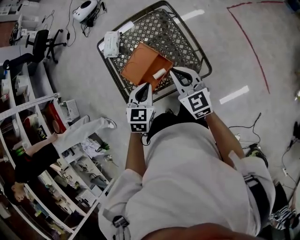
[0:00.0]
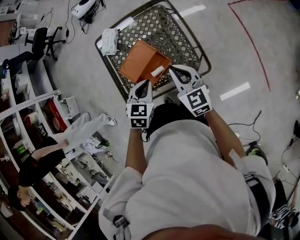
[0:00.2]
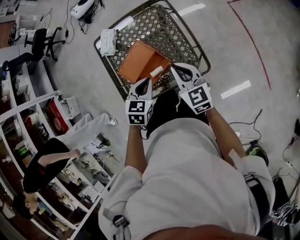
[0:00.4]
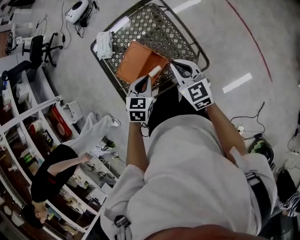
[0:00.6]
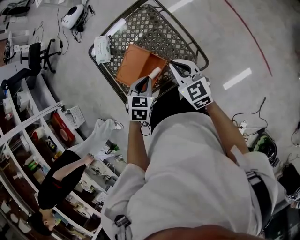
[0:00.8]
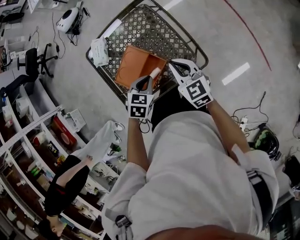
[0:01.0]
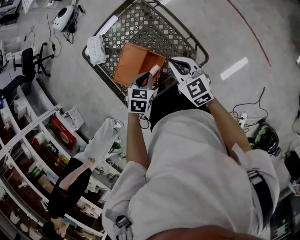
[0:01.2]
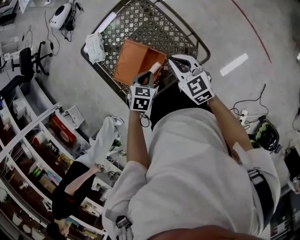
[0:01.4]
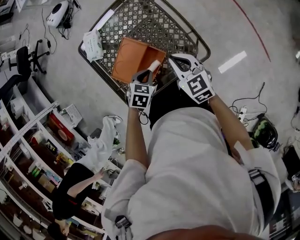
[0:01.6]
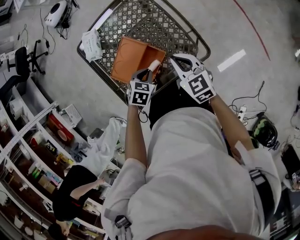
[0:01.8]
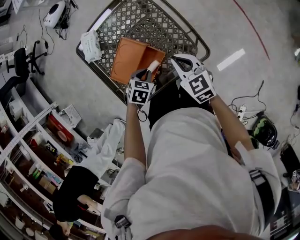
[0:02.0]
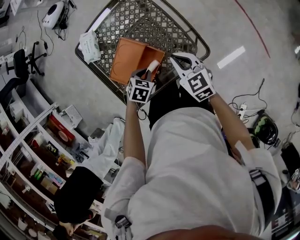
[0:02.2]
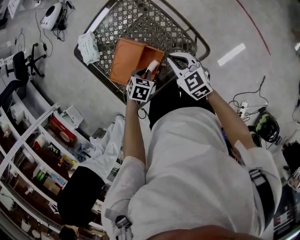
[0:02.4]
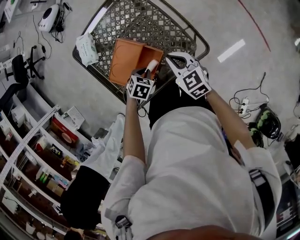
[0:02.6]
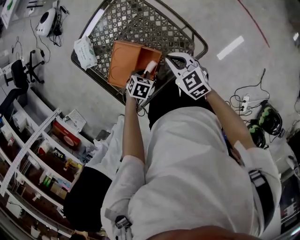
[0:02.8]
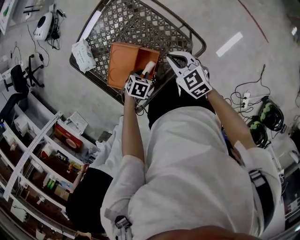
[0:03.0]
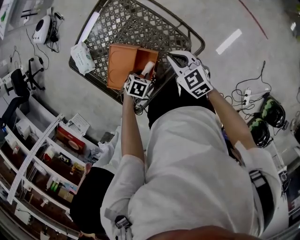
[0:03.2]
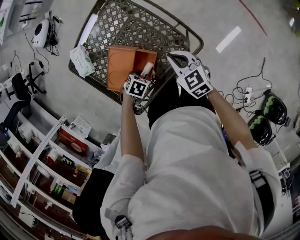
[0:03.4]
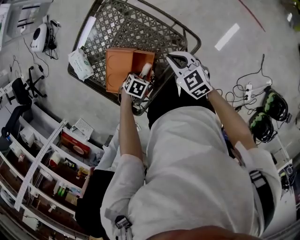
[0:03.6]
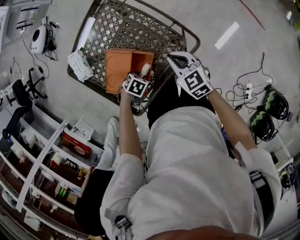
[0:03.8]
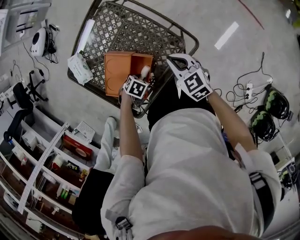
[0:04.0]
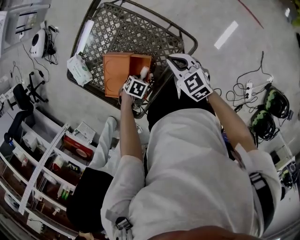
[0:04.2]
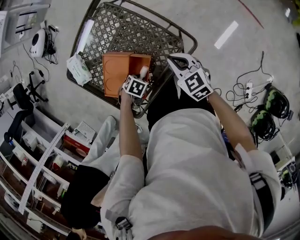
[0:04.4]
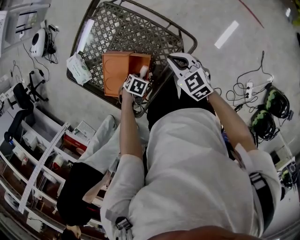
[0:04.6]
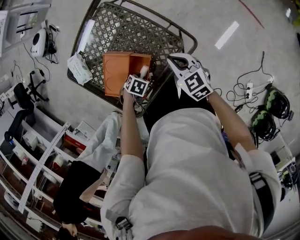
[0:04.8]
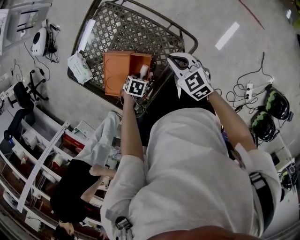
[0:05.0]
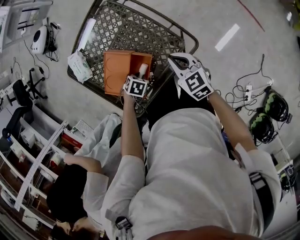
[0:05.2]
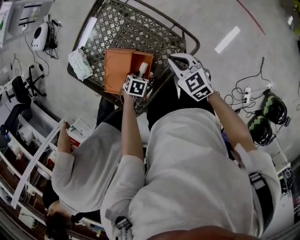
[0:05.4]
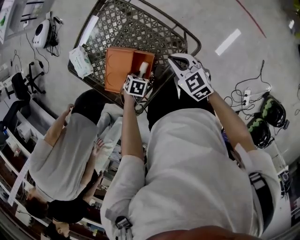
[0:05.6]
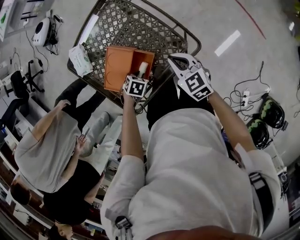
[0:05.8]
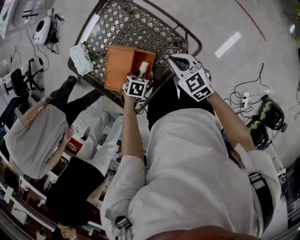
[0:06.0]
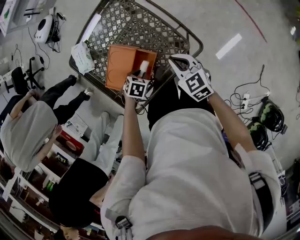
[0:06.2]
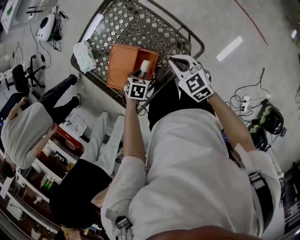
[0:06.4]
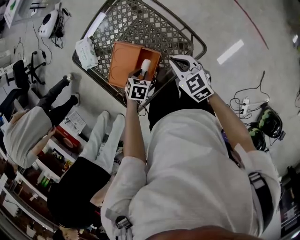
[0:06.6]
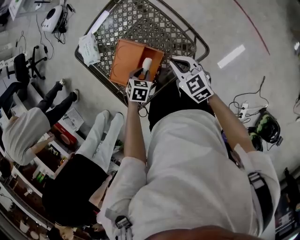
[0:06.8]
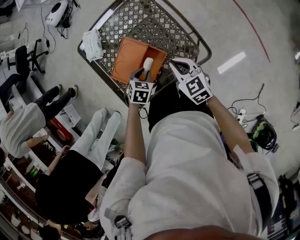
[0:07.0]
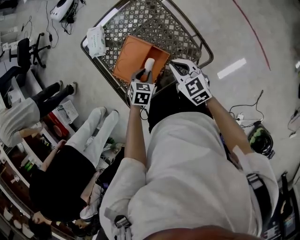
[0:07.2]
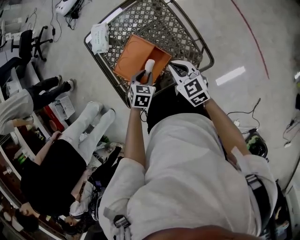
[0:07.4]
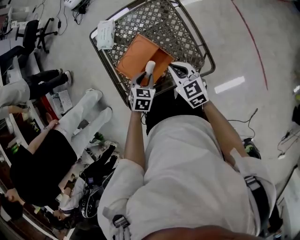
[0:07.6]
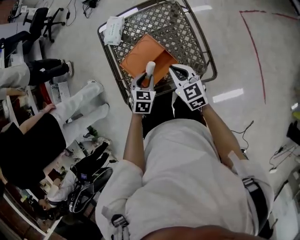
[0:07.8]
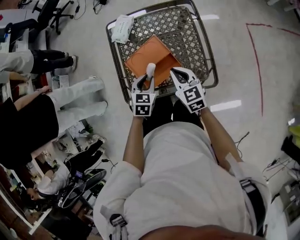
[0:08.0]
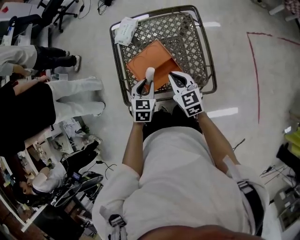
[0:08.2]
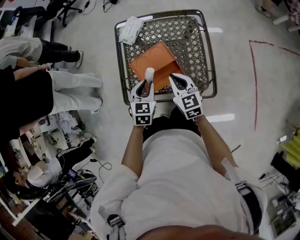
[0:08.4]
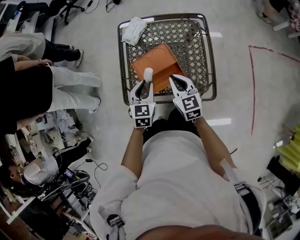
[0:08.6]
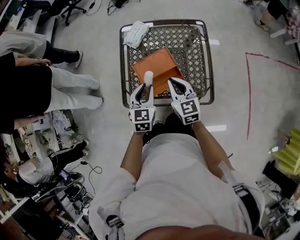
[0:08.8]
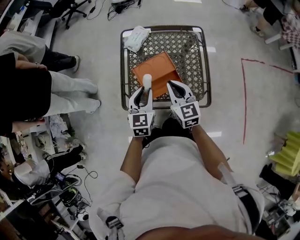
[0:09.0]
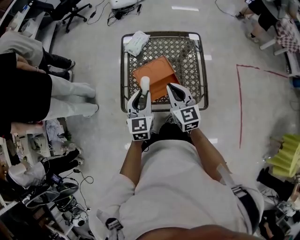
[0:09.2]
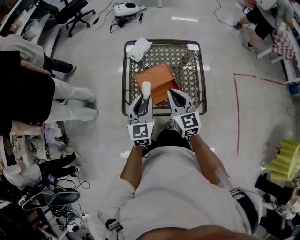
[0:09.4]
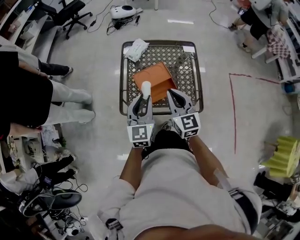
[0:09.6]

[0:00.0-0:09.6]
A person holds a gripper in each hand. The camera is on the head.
0.0 to 1.6 s: The right gripper shifts some 10 cm downward, while the left gripper moves downward, approximately 15 cm, and changes its angle by about 30 degrees.
1.6 to 3.2 s: The left gripper heads downward, covering about 10 cm, swivels approximately 30 degrees, and opens up. Meanwhile the right gripper moves downward, about 5 cm.
3.2 to 4.8 s: The grippers make only small movements.
4.8 to 6.4 s: The left gripper rotates some 20 degrees.
6.4 to 8.0 s: The right gripper changes place by approximately 10 cm, and turns by some 20 degrees. The left gripper is displaced upward by some 15 cm, and swivels roughly 50 degrees.
8.0 to 9.6 s: The left gripper shifts some 20 cm upward and backward, and tips its fingers upward by some 40 degrees, while the right gripper heads upward, to the left and backward, covering about 20 cm.

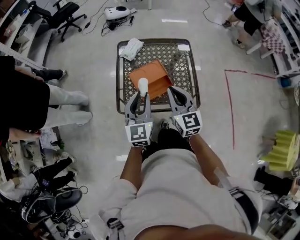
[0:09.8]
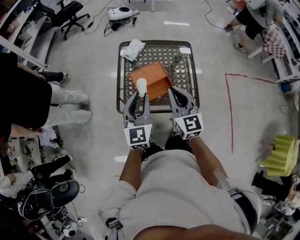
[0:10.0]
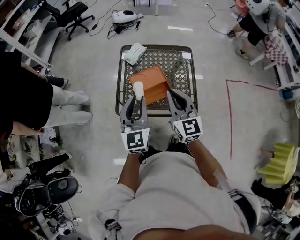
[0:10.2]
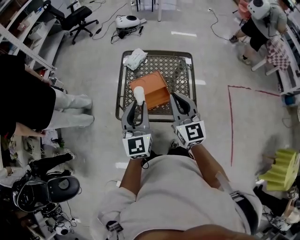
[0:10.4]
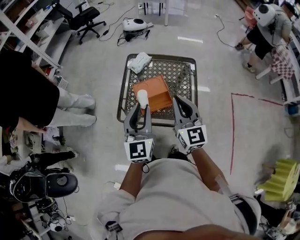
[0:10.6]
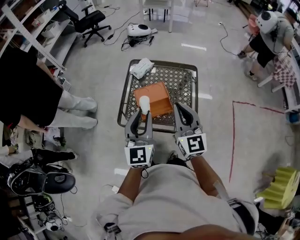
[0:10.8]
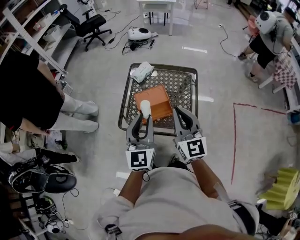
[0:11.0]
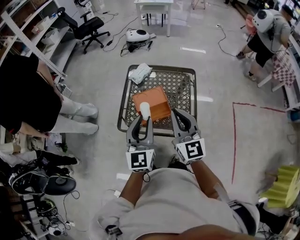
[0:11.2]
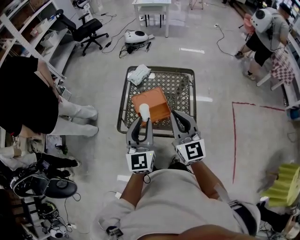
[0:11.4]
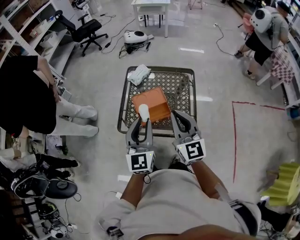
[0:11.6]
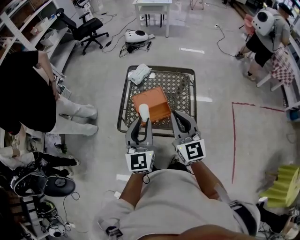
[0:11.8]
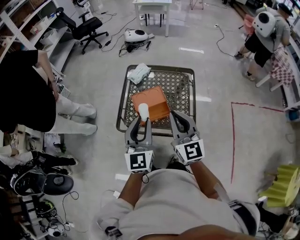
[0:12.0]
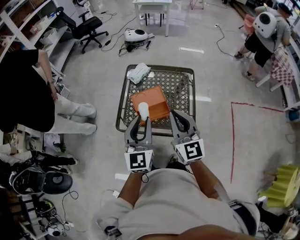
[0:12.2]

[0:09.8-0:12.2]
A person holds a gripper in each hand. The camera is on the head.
9.8 to 11.0 s: The two grippers go roughly 10 cm upward and to the right.
11.0 to 12.2 s: The grippers make only small movements.

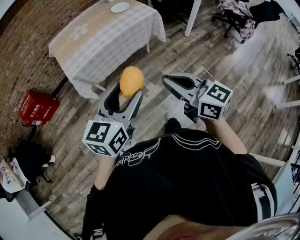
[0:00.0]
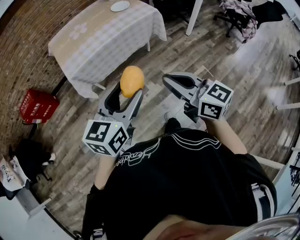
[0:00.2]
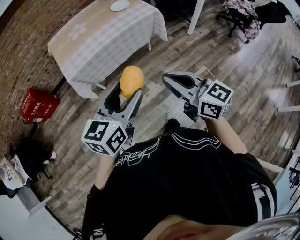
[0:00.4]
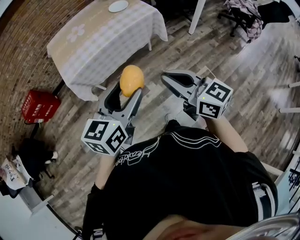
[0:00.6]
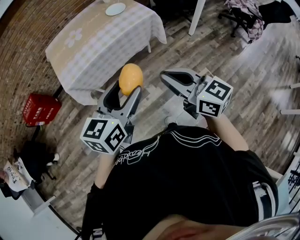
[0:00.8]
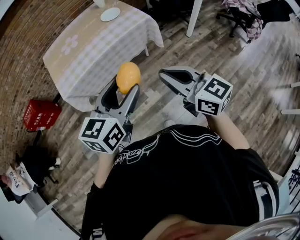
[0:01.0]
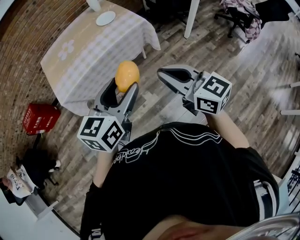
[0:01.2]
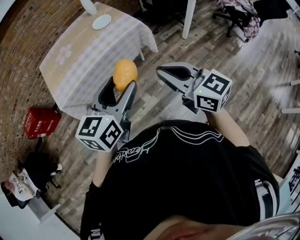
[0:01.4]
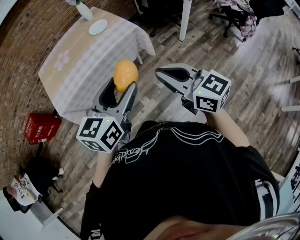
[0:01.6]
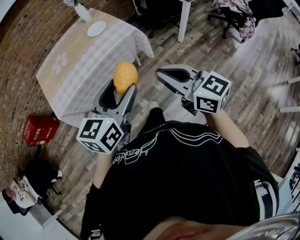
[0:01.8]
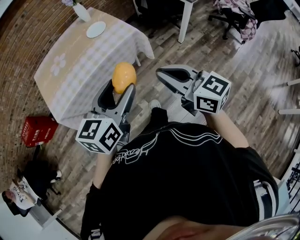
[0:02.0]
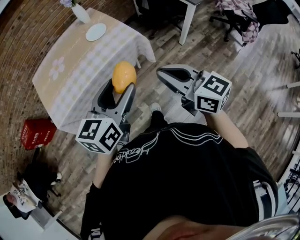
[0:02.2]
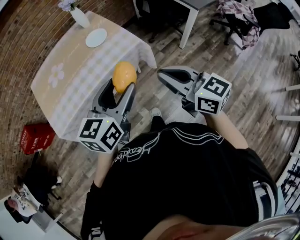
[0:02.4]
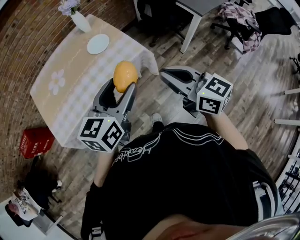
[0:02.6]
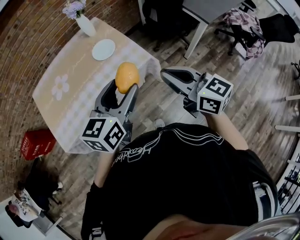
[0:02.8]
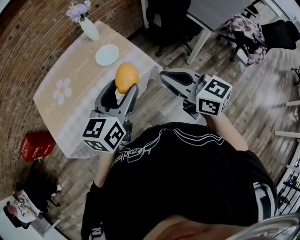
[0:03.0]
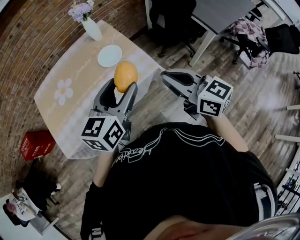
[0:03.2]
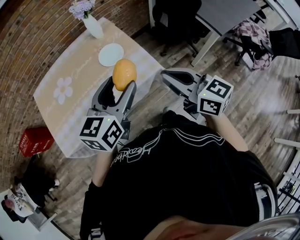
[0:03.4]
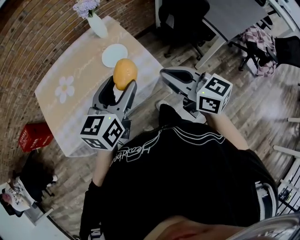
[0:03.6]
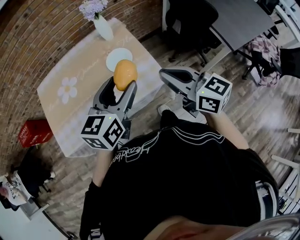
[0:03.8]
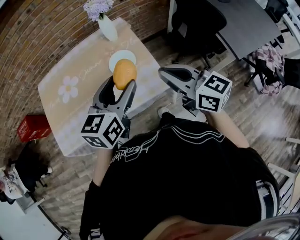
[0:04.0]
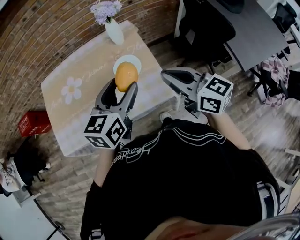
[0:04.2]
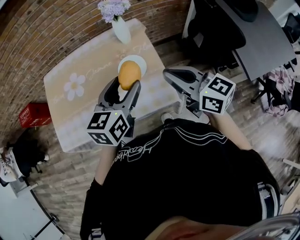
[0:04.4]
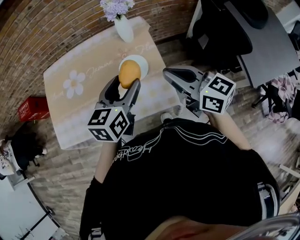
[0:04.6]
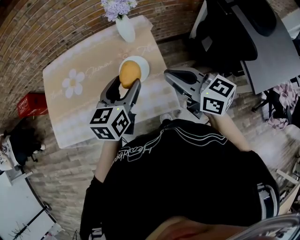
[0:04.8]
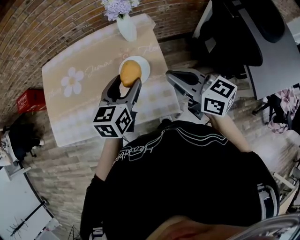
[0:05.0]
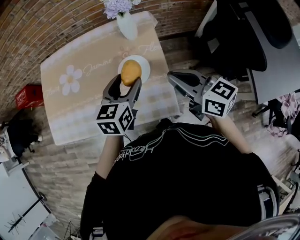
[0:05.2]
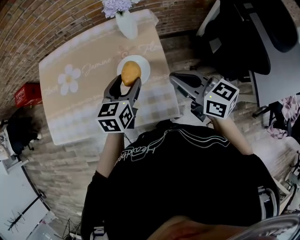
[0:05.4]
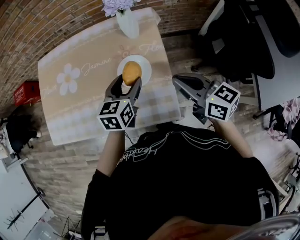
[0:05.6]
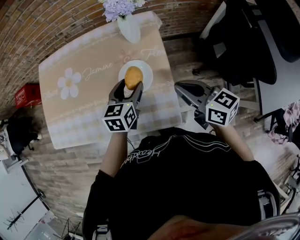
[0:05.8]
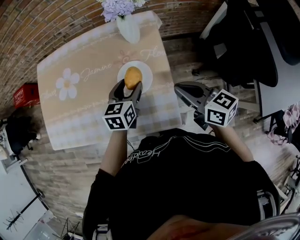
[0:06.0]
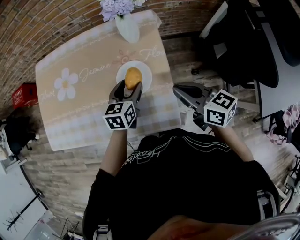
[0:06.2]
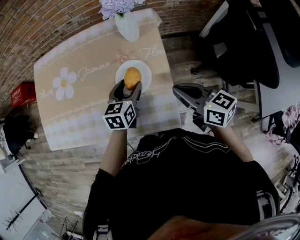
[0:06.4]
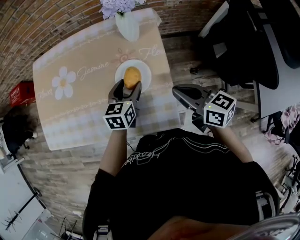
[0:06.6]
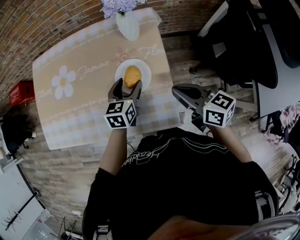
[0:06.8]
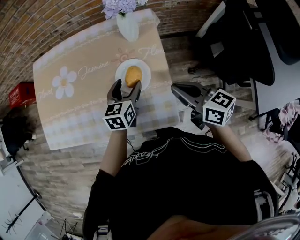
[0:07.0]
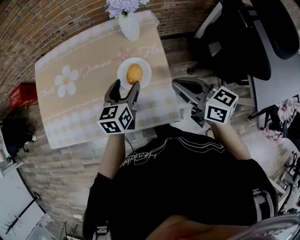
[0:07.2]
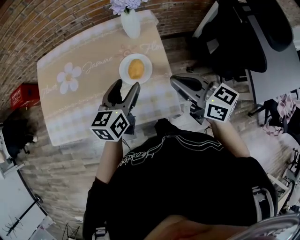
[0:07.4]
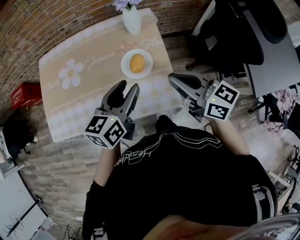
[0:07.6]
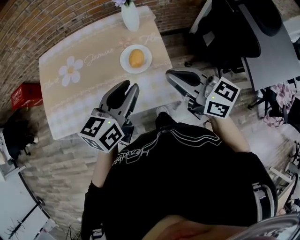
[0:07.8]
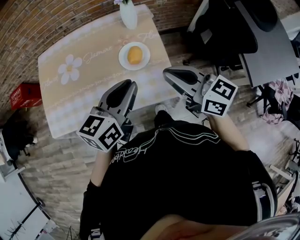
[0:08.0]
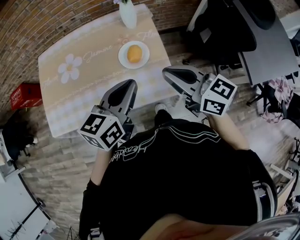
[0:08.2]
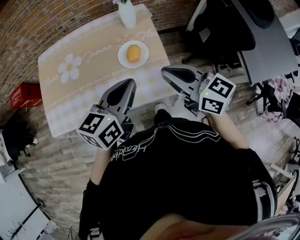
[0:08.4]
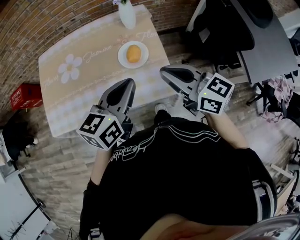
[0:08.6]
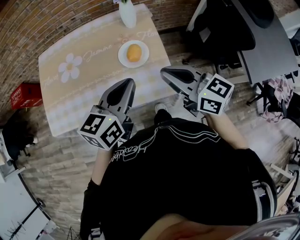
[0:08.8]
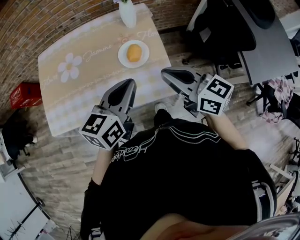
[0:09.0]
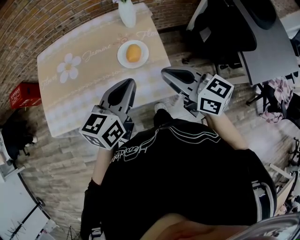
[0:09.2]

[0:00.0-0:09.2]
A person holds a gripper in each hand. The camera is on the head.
0.0 to 1.6 s: Both grippers travel together to the right and forward, roughly 25 cm.
1.6 to 3.0 s: The grippers both shift forward by about 35 cm.
3.0 to 4.6 s: Both grippers move forward, approximately 25 cm. The right gripper changes its angle by about 20 degrees. Meanwhile the left gripper turns by roughly 30 degrees.
4.6 to 6.2 s: The two grippers go roughly 20 cm downward and forward.
6.2 to 7.6 s: The right gripper is displaced upward, to the left and backward by about 15 cm. The left gripper is displaced upward and backward by about 20 cm, and changes its angle by some 20 degrees.
7.6 to 9.2 s: The left gripper moves about 5 cm, and closes up.

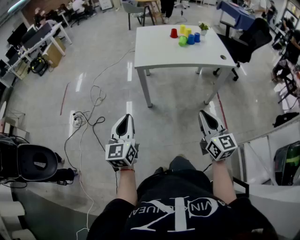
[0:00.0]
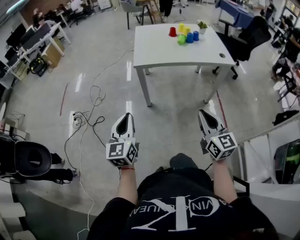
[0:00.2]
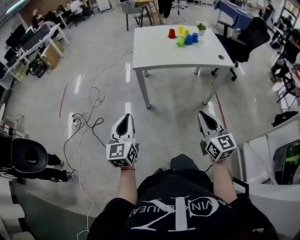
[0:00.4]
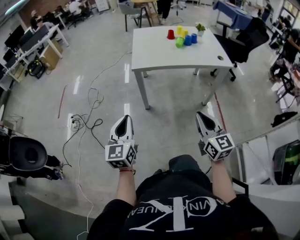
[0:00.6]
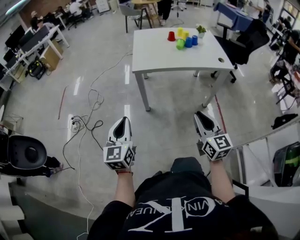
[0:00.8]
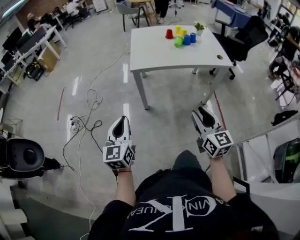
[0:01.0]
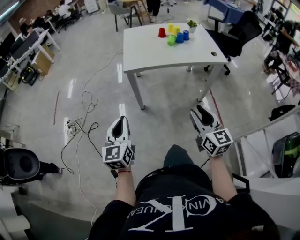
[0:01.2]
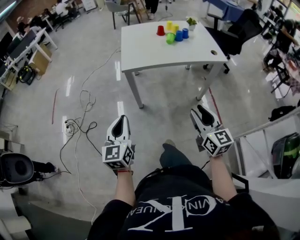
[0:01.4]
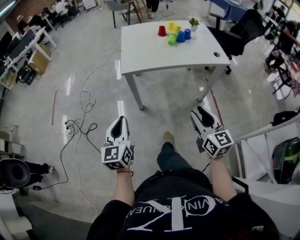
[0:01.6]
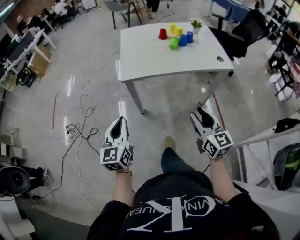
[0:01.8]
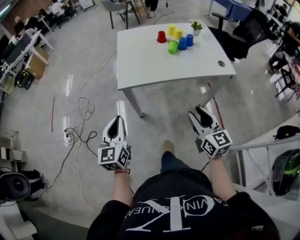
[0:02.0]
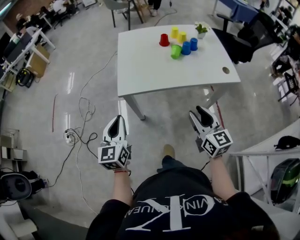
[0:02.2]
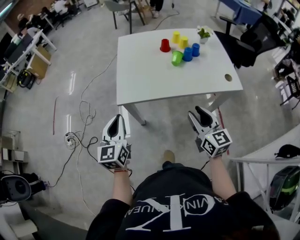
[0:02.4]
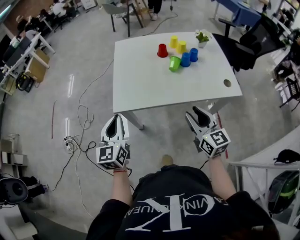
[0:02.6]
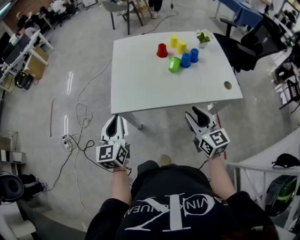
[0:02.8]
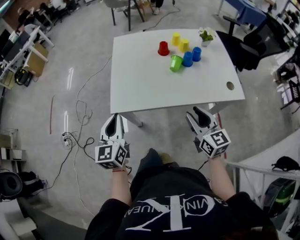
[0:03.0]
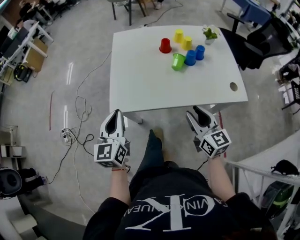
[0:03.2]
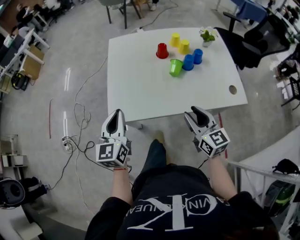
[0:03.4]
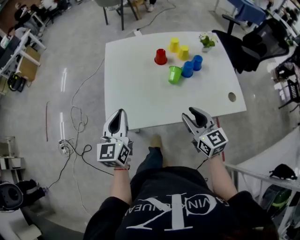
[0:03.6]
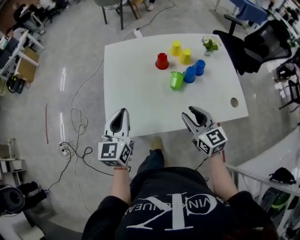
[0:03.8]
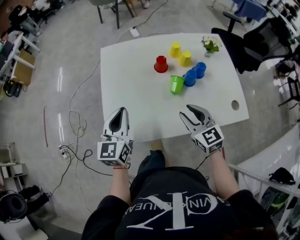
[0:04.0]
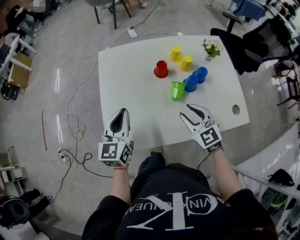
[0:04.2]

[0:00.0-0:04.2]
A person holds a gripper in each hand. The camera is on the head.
0.0 to 1.4 s: The grippers both shift forward by about 5 cm. The right gripper opens up.
1.4 to 2.8 s: Both grippers move forward, approximately 35 cm.
2.8 to 4.2 s: Both grippers move forward, roughly 25 cm. The right gripper rotates approximately 30 degrees.
